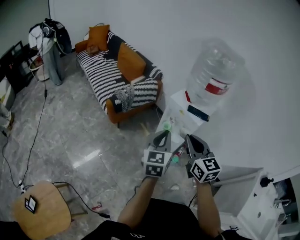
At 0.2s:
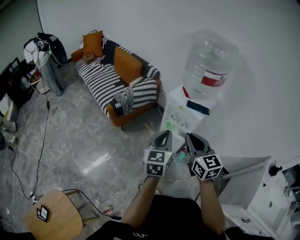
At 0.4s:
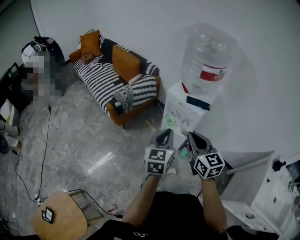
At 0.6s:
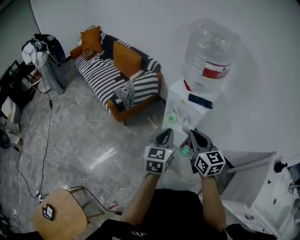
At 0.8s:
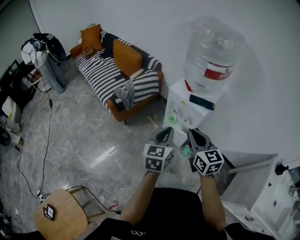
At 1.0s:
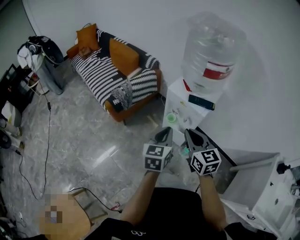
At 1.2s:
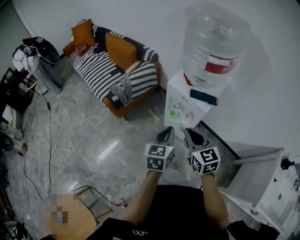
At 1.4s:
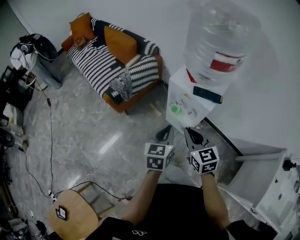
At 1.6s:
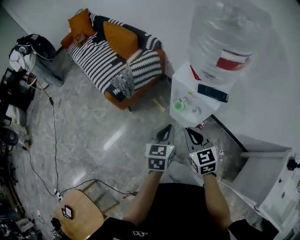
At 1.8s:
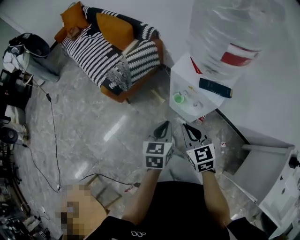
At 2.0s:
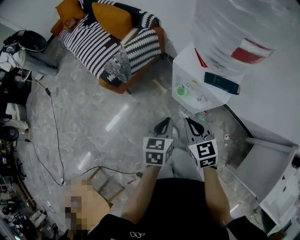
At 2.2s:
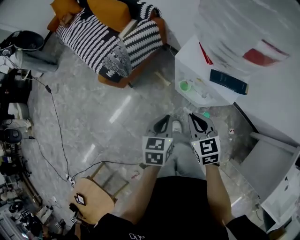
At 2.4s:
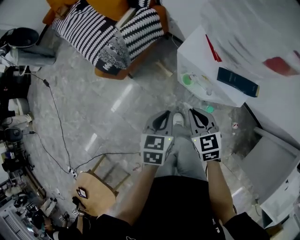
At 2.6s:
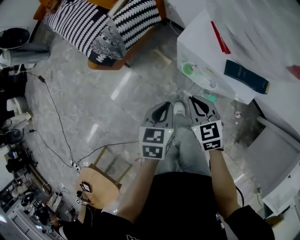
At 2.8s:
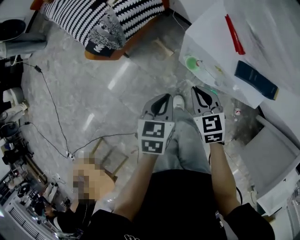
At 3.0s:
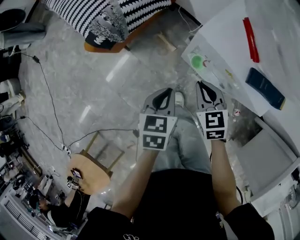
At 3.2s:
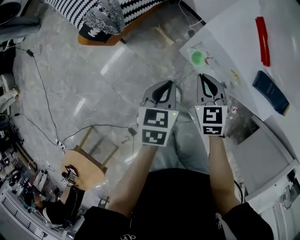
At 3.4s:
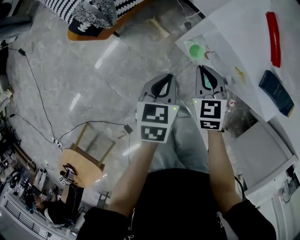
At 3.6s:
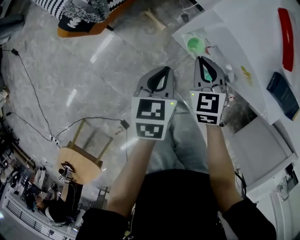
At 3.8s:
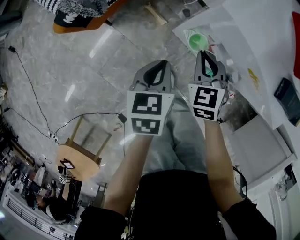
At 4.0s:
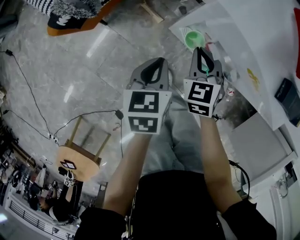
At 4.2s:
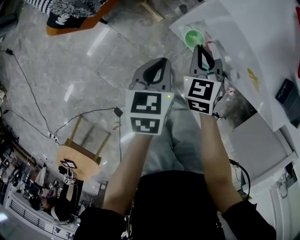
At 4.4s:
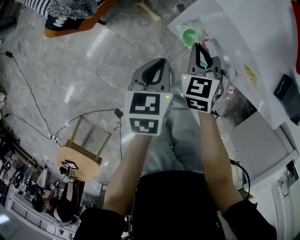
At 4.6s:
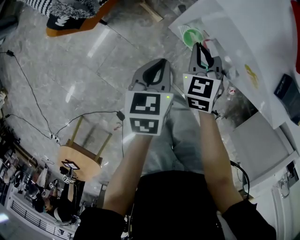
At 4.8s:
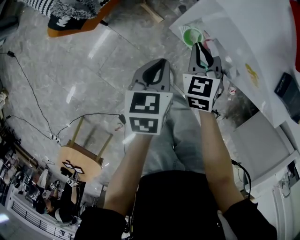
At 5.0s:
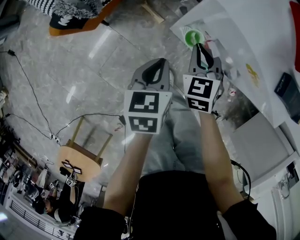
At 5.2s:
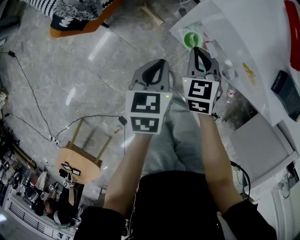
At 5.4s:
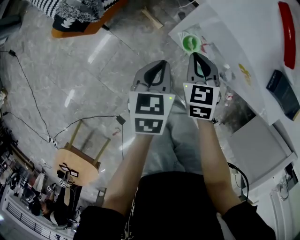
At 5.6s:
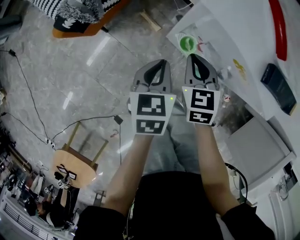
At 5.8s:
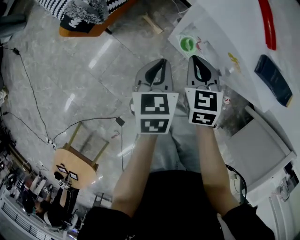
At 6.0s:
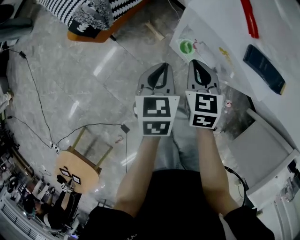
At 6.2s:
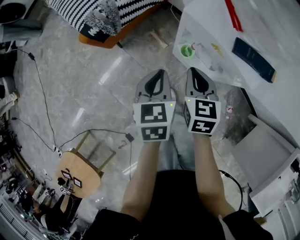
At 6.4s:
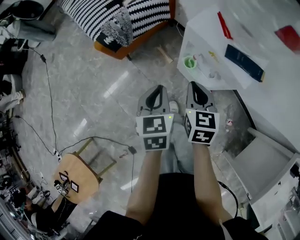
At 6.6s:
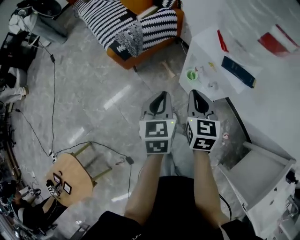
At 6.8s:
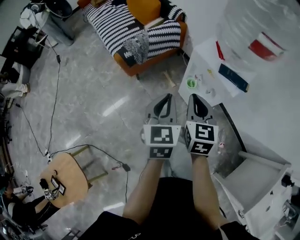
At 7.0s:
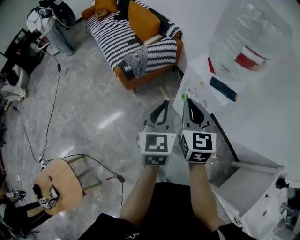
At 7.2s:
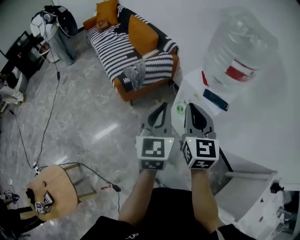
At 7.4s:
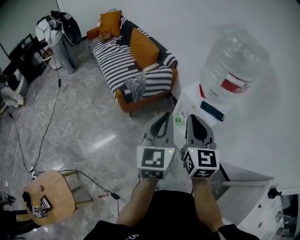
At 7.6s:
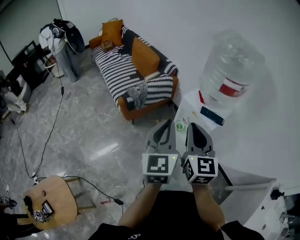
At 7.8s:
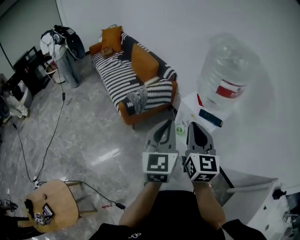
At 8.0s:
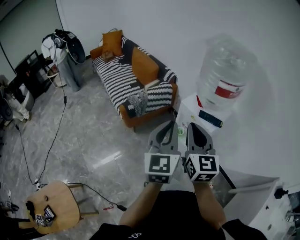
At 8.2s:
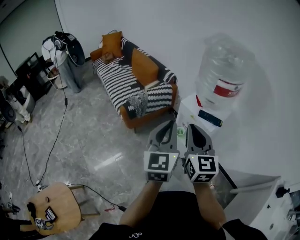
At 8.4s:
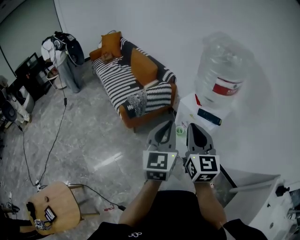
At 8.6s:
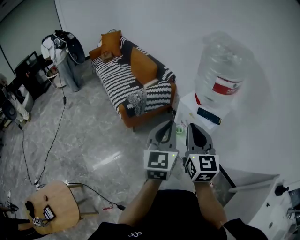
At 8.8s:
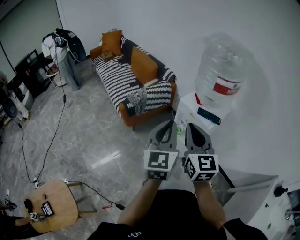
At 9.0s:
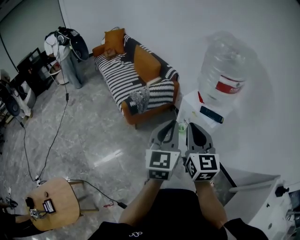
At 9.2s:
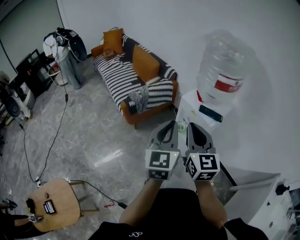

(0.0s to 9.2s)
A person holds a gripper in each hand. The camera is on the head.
0.0s - 1.6s: Both grippers move downward and forward, about 20 cm. The left gripper rotates about 20 degrees.
1.6s - 3.0s: Both grippers travel together downward and forward, roughly 25 cm. The left gripper swivels roughly 20 degrees.
3.0s - 4.6s: The left gripper goes approximately 10 cm downward. Meanwhile the right gripper shifts approximately 10 cm downward and forward.
4.6s - 6.2s: The left gripper heads upward, covering roughly 15 cm. The right gripper heads upward and backward, covering approximately 20 cm.
6.2s - 7.6s: The two grippers go roughly 40 cm upward and backward. The right gripper tilts its fingers some 30 degrees upward; the left gripper angles its fingers upward, by some 40 degrees.
7.6s - 9.2s: The grippers stay close to where they were, moving slightly.

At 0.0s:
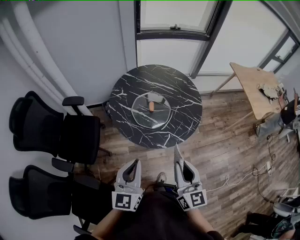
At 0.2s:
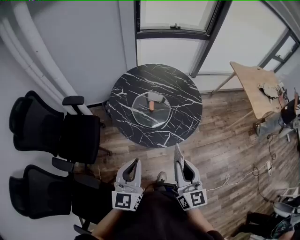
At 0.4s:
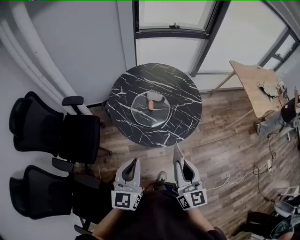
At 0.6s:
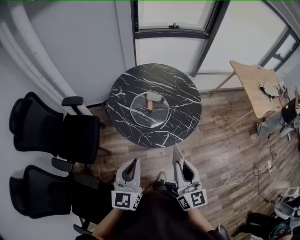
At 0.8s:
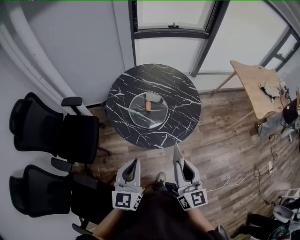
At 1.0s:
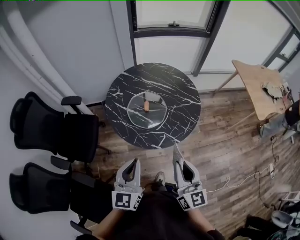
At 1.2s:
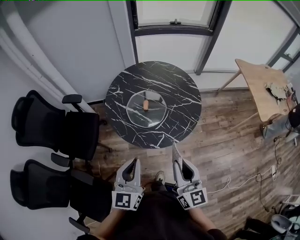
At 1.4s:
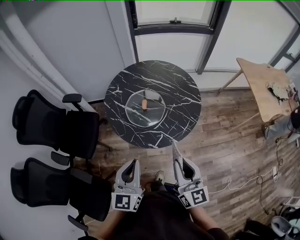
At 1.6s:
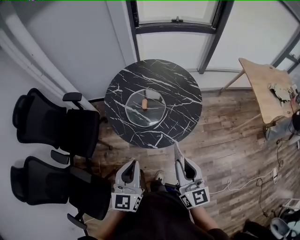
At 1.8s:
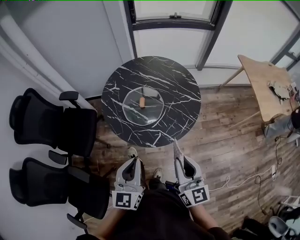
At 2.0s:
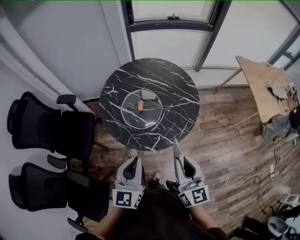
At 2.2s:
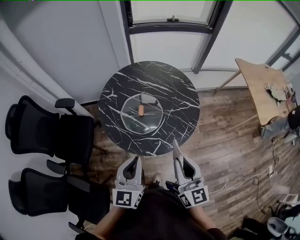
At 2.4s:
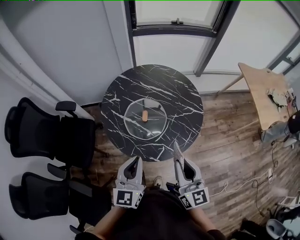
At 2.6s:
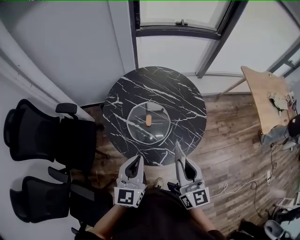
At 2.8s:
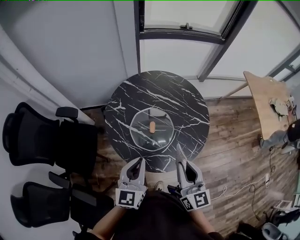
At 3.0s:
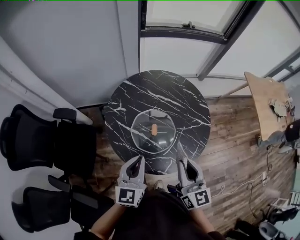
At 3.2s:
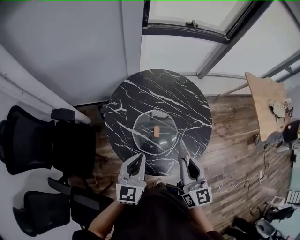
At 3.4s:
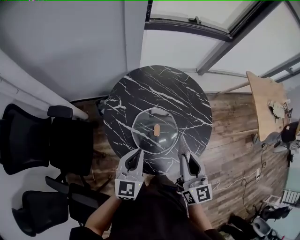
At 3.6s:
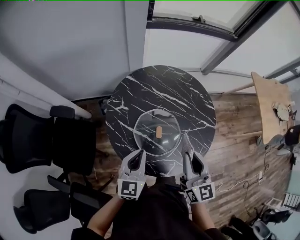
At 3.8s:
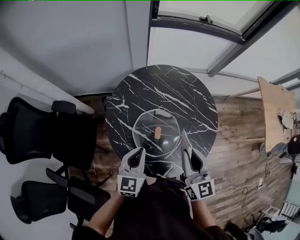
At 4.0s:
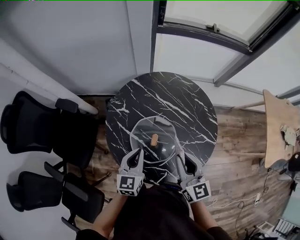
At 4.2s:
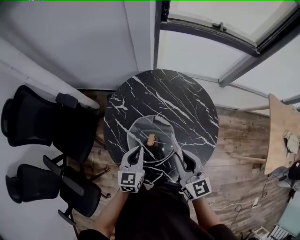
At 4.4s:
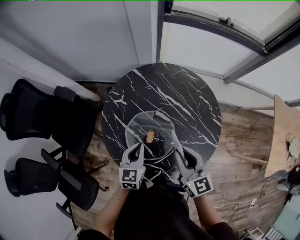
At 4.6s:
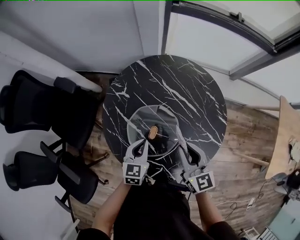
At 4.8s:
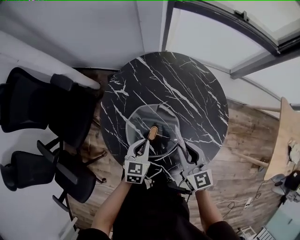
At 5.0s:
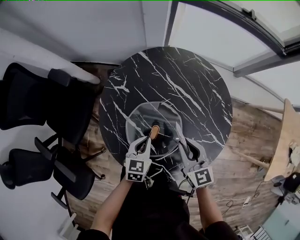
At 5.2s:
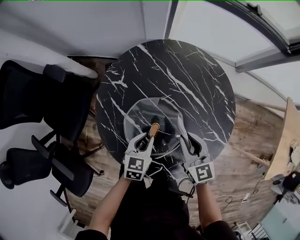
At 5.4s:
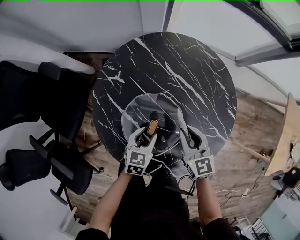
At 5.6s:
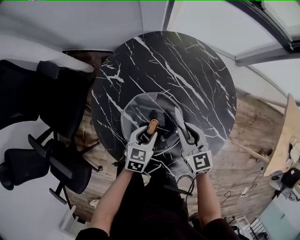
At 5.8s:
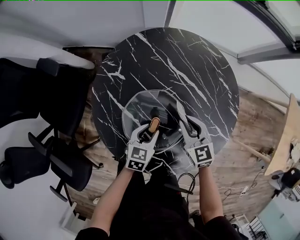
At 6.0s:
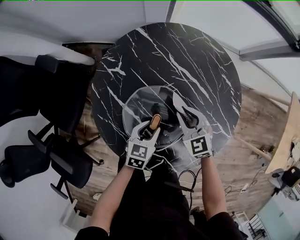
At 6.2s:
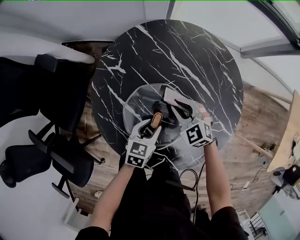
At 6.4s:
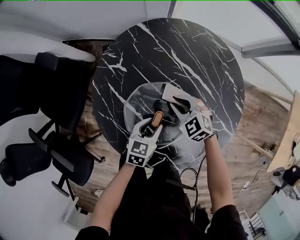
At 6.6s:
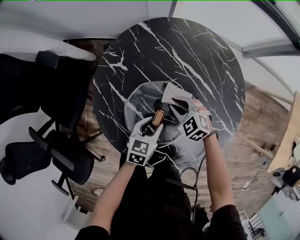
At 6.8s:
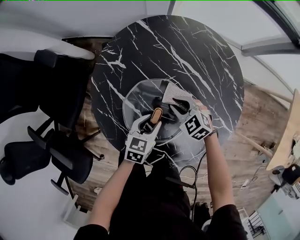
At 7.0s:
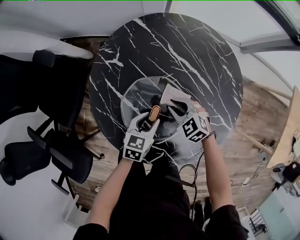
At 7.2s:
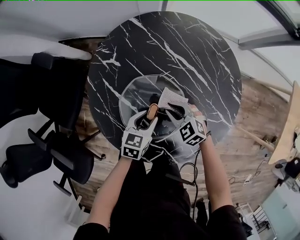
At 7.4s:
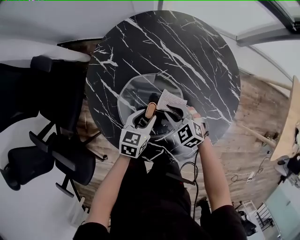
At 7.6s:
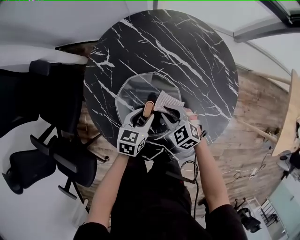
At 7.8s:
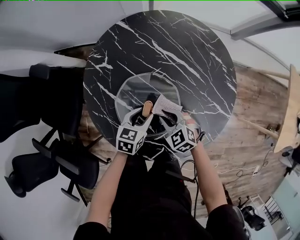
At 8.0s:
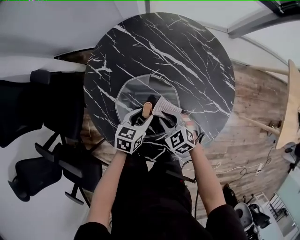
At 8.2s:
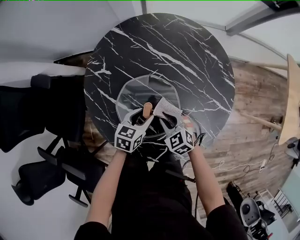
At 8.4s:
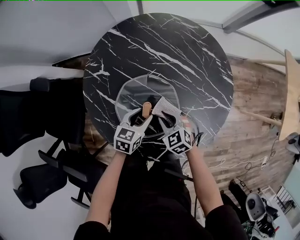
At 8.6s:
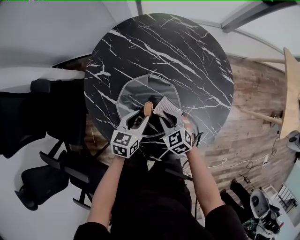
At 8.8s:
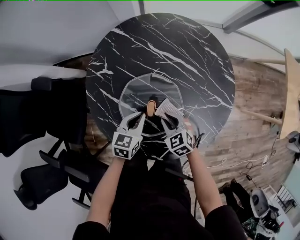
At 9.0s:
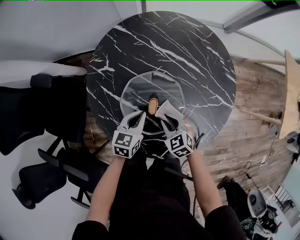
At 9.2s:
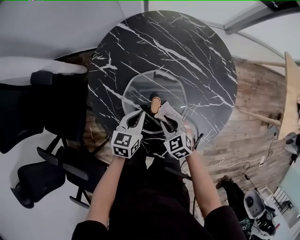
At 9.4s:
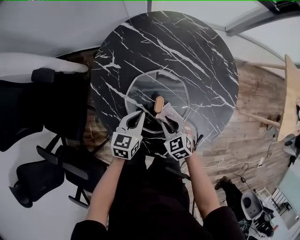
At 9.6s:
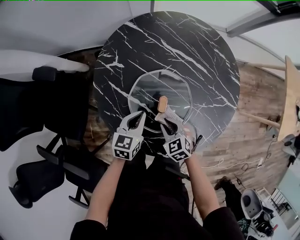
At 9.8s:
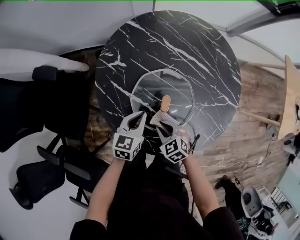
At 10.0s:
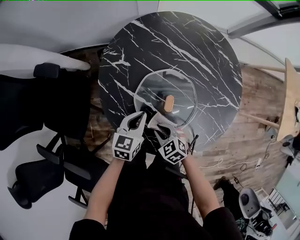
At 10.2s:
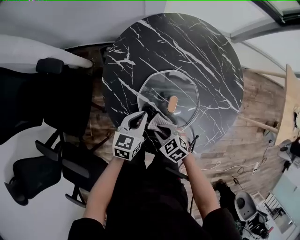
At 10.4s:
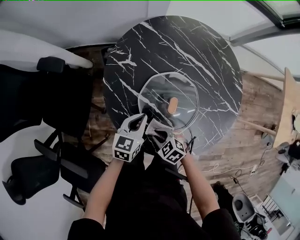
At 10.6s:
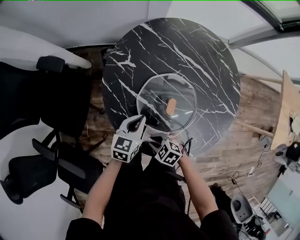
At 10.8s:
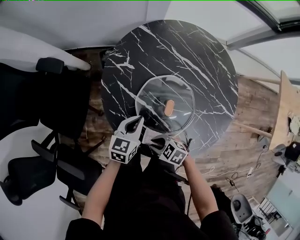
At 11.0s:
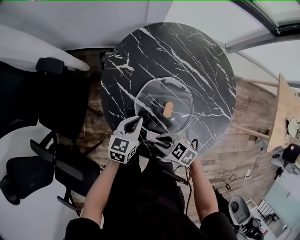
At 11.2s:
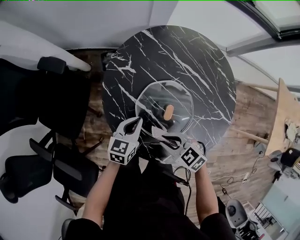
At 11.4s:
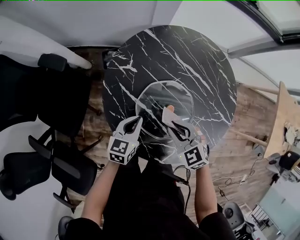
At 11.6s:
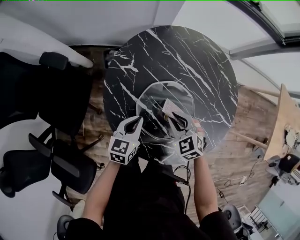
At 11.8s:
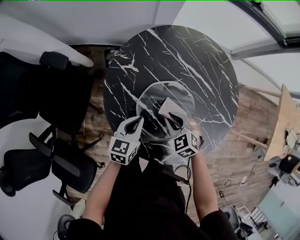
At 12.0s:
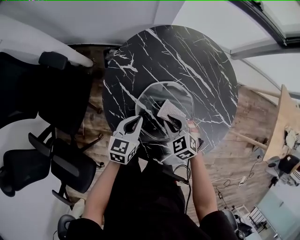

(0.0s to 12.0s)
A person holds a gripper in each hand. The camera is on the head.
0.0s - 1.6s: The grippers both shift to the right by approximately 10 cm.
1.6s - 3.0s: The right gripper shifts roughly 25 cm forward and to the left; the left gripper travels forward by some 25 cm.
3.0s - 4.4s: The left gripper heads downward and forward, covering approximately 20 cm, and turns by about 30 degrees, while the right gripper shifts about 20 cm forward and downward, and rotates roughly 30 degrees.
4.4s - 6.0s: The two grippers go approximately 20 cm downward. The right gripper swivels approximately 30 degrees, while the left gripper turns by approximately 20 degrees, and opens its fingers.
6.0s - 7.6s: The right gripper travels backward and downward by about 10 cm.
7.6s - 9.0s: The right gripper is displaced backward by about 5 cm, and rotates roughly 20 degrees, while the left gripper closes up.
9.0s - 10.4s: The left gripper shifts about 10 cm to the left. The right gripper travels to the left and backward by approximately 15 cm, and turns by approximately 20 degrees.
10.4s - 12.0s: The right gripper moves some 15 cm, and turns by roughly 20 degrees.

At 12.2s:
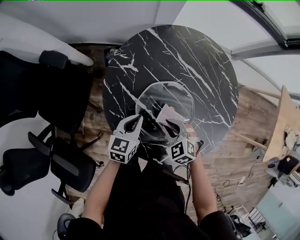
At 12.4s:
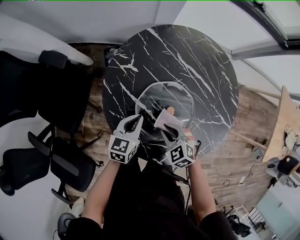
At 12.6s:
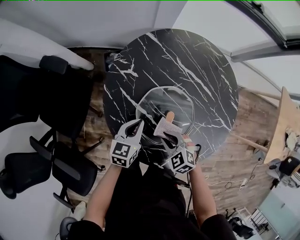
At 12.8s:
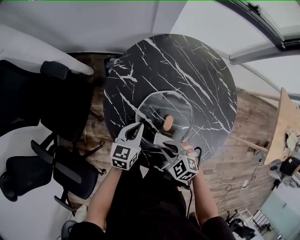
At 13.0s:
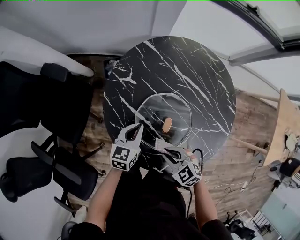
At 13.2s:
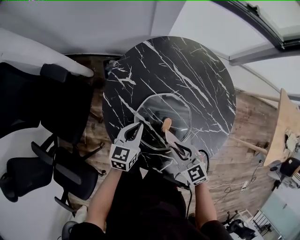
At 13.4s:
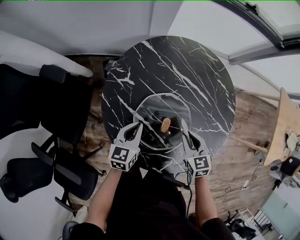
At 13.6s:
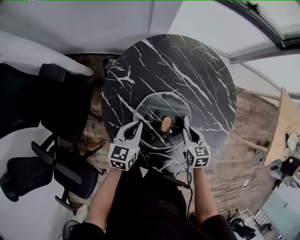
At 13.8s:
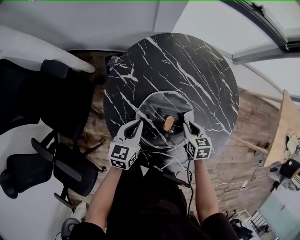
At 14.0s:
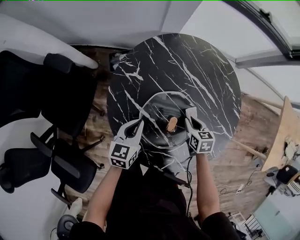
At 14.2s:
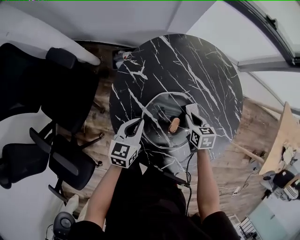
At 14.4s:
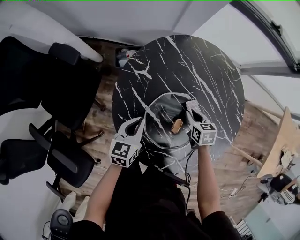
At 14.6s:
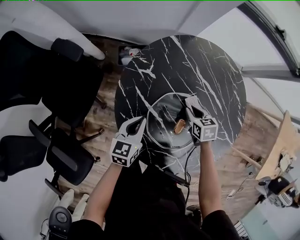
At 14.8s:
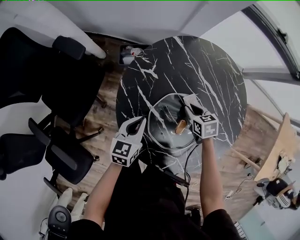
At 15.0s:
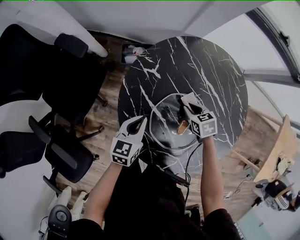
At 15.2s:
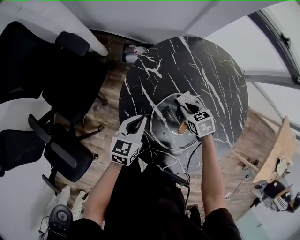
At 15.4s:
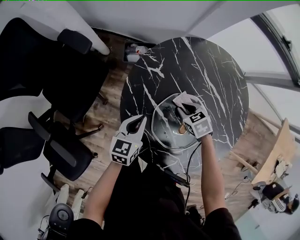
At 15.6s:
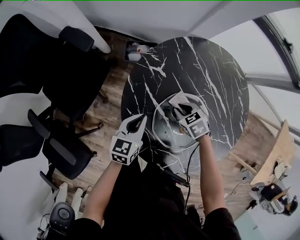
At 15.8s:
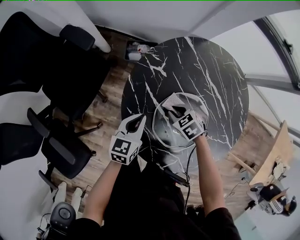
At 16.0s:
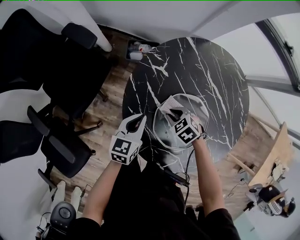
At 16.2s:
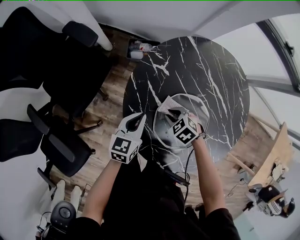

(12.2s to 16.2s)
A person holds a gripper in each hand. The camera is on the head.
12.2s - 13.6s: The right gripper travels to the right by approximately 15 cm, and rotates around the line of its fingers by about 50 degrees, clockwise from behind.
13.6s - 14.8s: The left gripper goes about 5 cm to the left, while the right gripper shifts approximately 15 cm forward and to the left, and changes its angle by about 20 degrees.
14.8s - 16.2s: The right gripper travels to the left by roughly 15 cm, and swivels roughly 40 degrees.
